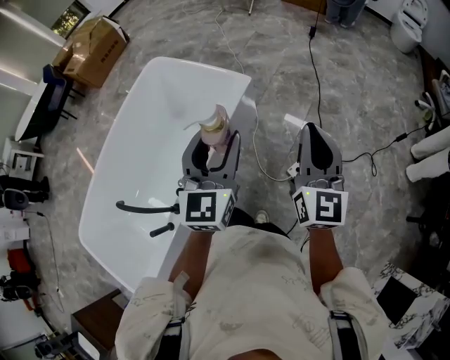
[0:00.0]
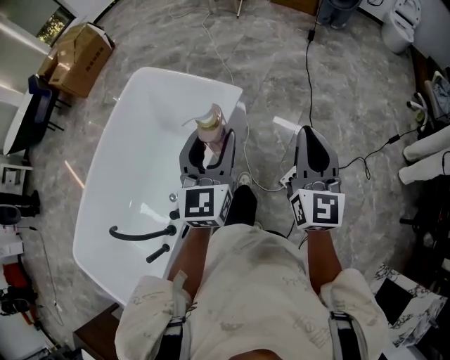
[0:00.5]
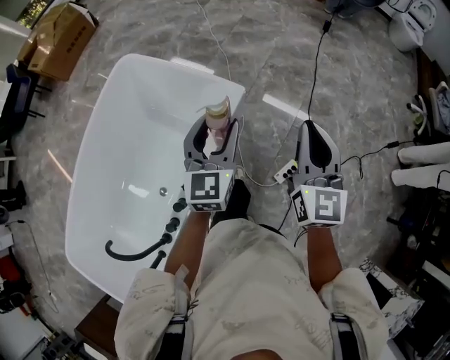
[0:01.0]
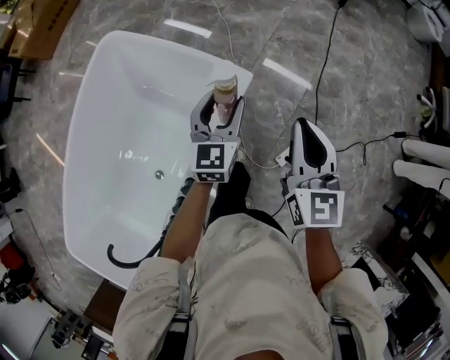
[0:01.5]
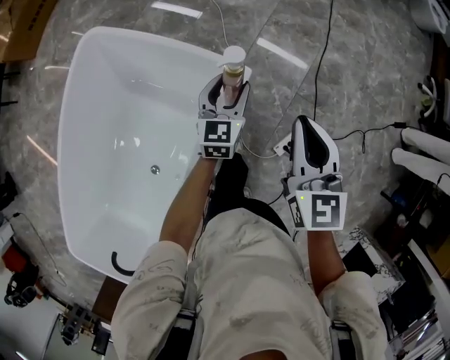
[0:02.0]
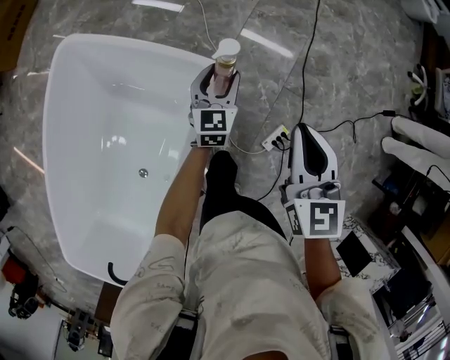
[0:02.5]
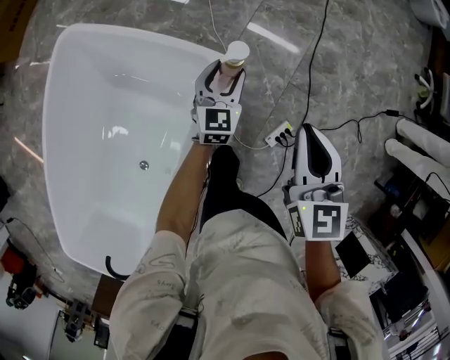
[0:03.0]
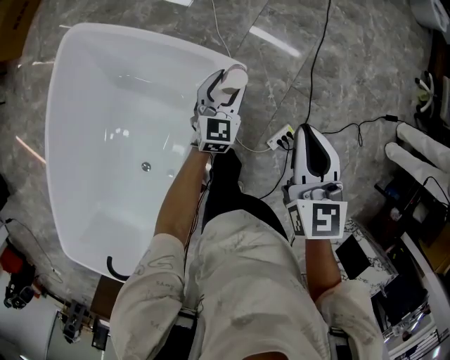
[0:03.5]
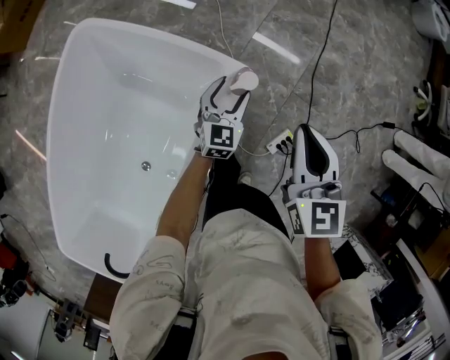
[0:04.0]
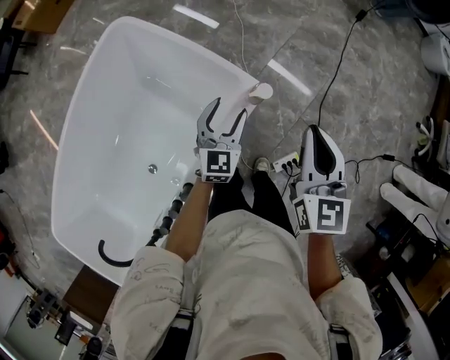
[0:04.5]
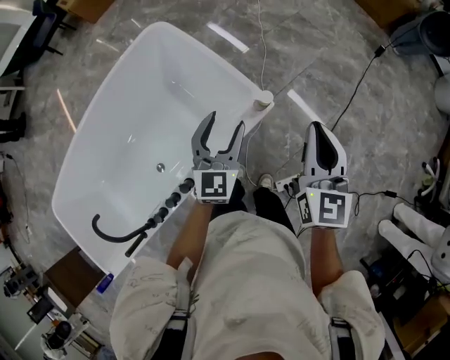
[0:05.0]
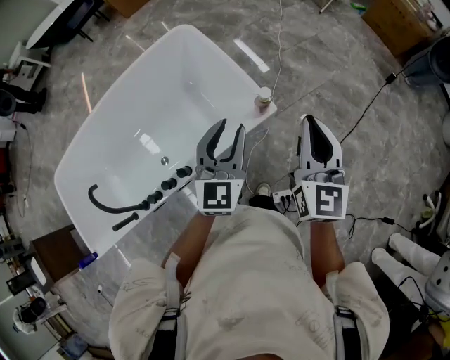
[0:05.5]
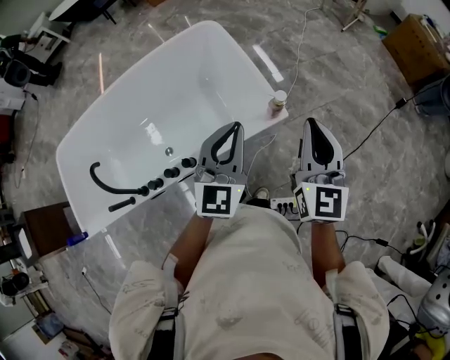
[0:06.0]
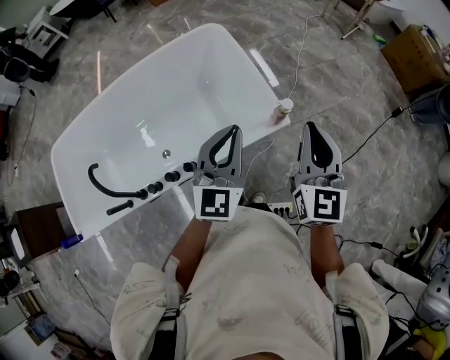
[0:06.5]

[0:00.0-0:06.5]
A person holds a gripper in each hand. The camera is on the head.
0:00.0 to 0:02.0: Both grippers move forward and downward, approximately 50 cm. The left gripper changes its angle by some 20 degrees. The right gripper swivels approximately 30 degrees.
0:02.0 to 0:04.5: The left gripper is displaced backward by roughly 5 cm, and travels downward and back again, approximately 5 cm each way.
0:04.5 to 0:06.5: The right gripper goes approximately 10 cm upward, and swivels approximately 30 degrees; the left gripper heads upward, covering approximately 25 cm, rotates approximately 30 degrees, and closes.

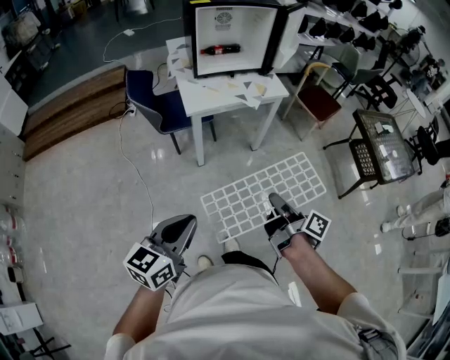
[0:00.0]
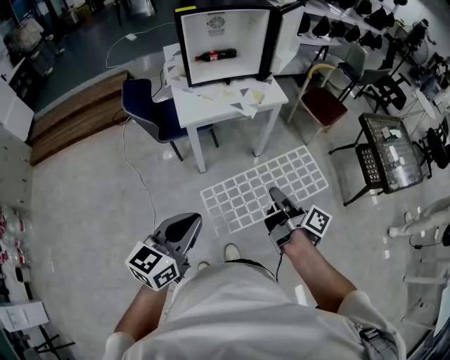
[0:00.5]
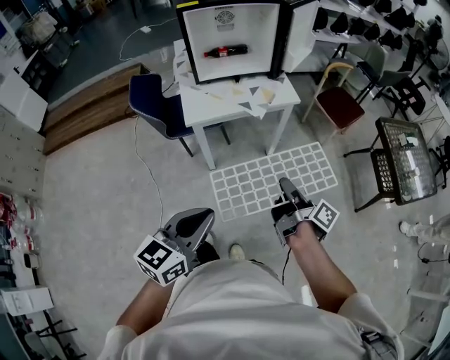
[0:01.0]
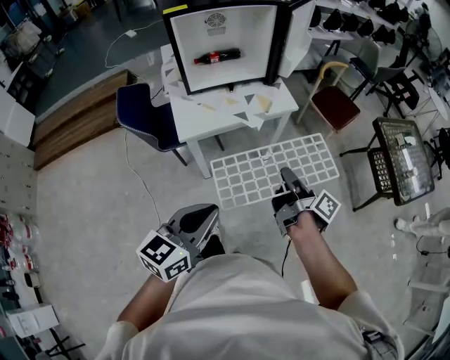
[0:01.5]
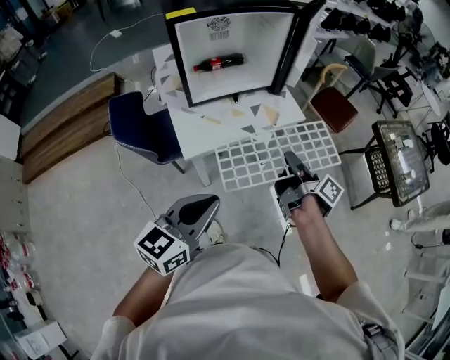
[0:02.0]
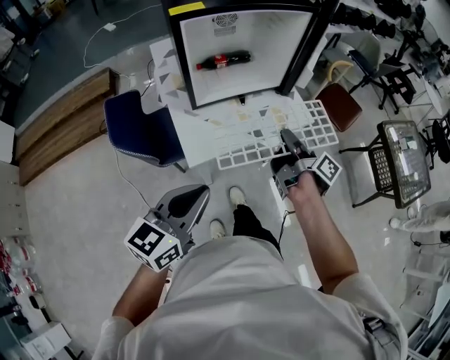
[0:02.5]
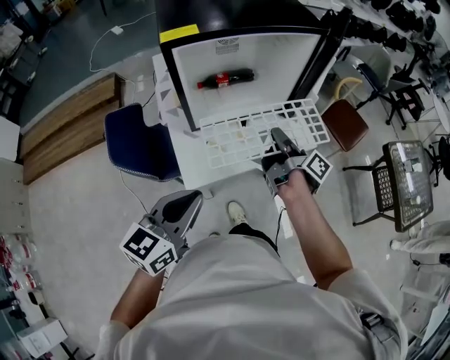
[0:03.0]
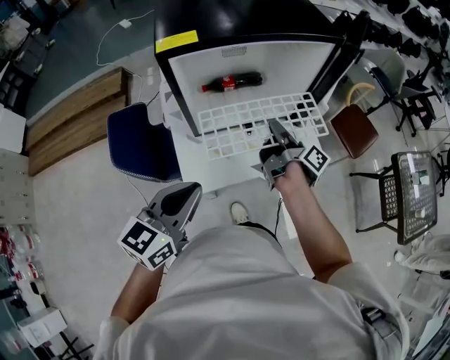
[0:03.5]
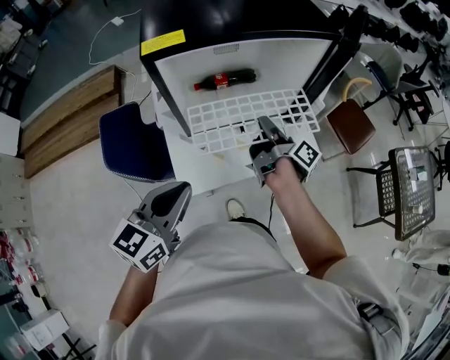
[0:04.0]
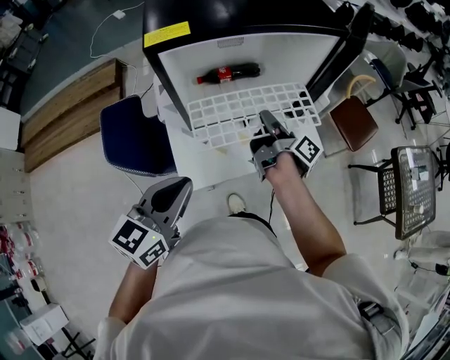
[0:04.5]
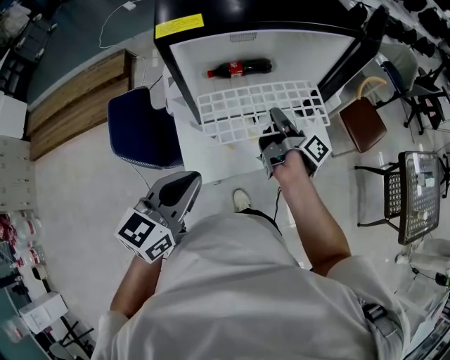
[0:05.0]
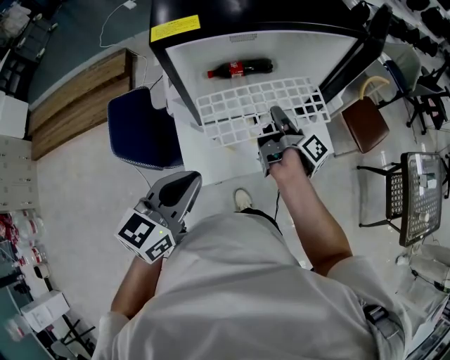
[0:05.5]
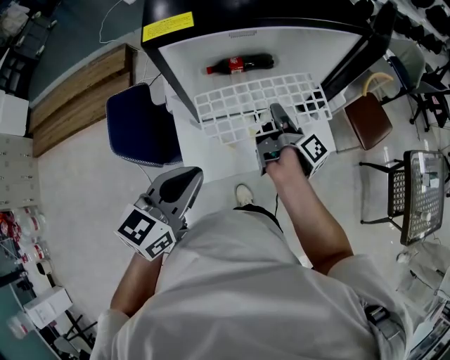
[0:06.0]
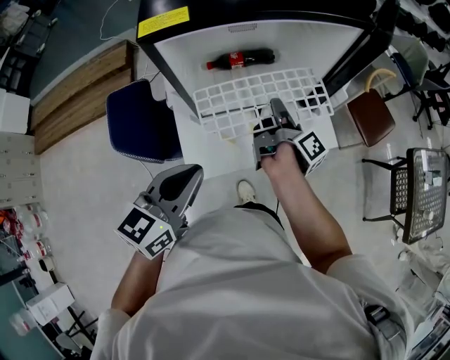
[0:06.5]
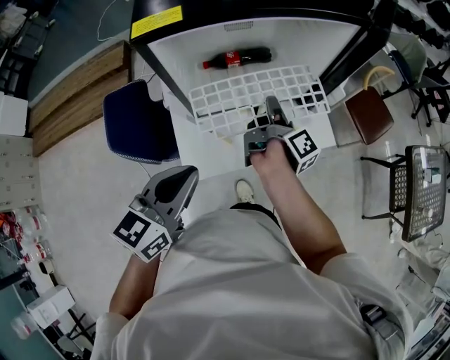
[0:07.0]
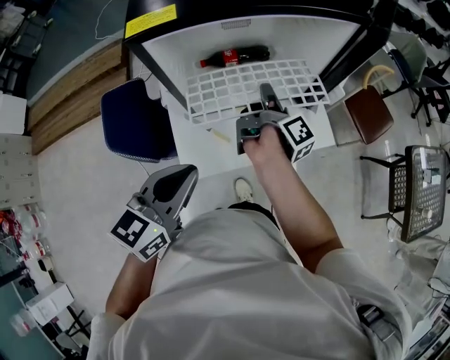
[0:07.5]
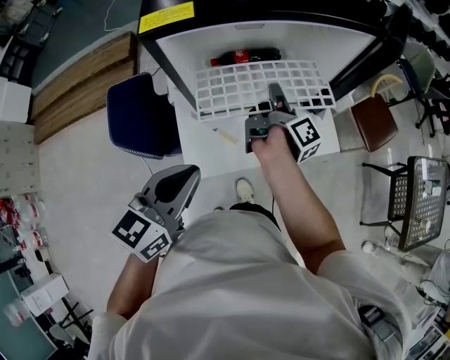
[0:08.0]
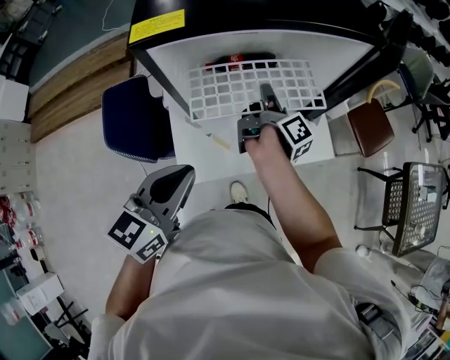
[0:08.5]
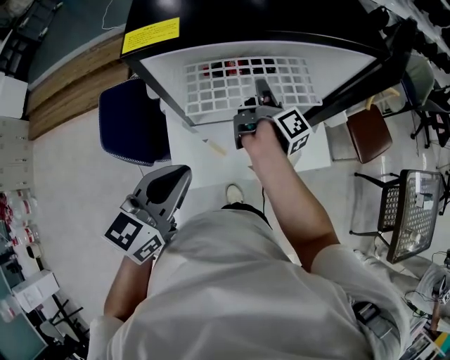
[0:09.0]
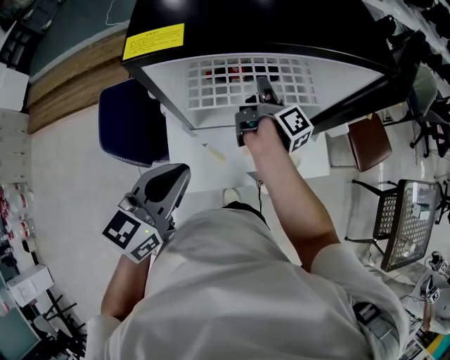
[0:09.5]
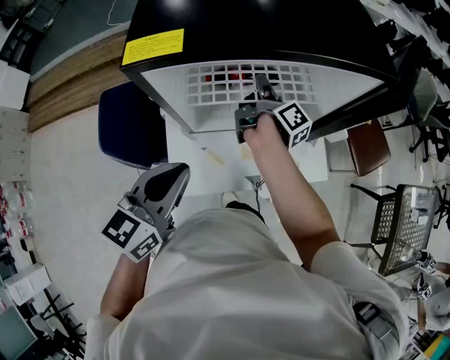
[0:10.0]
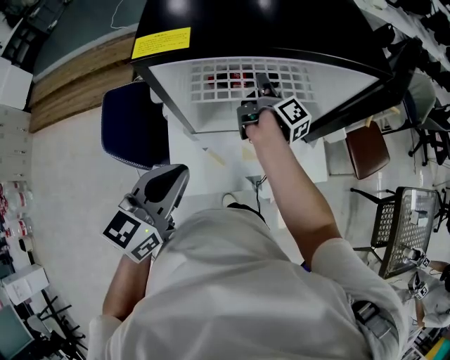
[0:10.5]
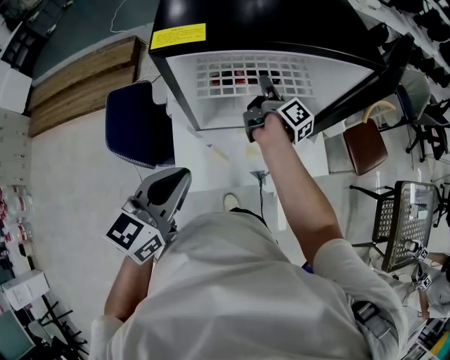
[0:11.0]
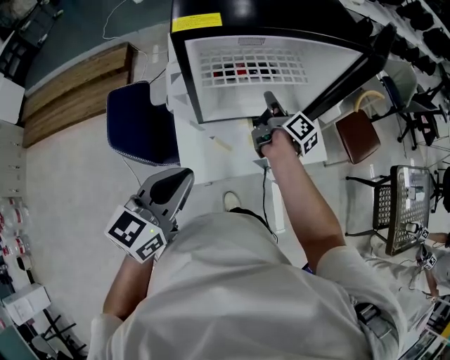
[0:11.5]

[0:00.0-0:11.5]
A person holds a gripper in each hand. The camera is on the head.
0:00.0 to 0:02.0: The left gripper changes place by some 30 cm.
0:02.0 to 0:04.0: The left gripper shifts by some 25 cm.
0:07.5 to 0:09.5: The left gripper moves some 5 cm.
0:09.5 to 0:11.5: The left gripper changes place by roughly 10 cm.

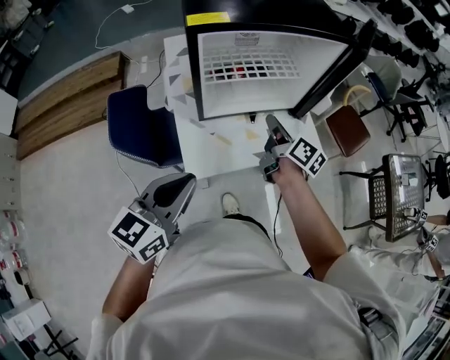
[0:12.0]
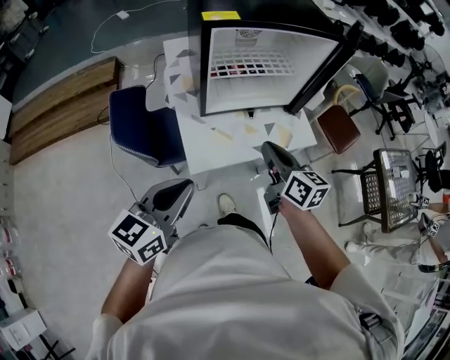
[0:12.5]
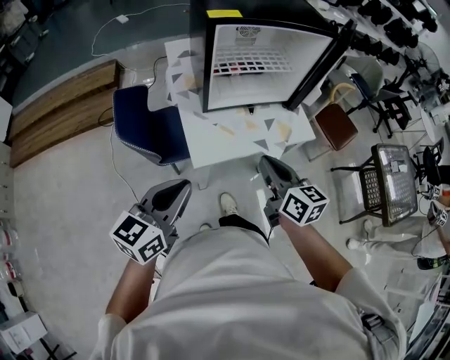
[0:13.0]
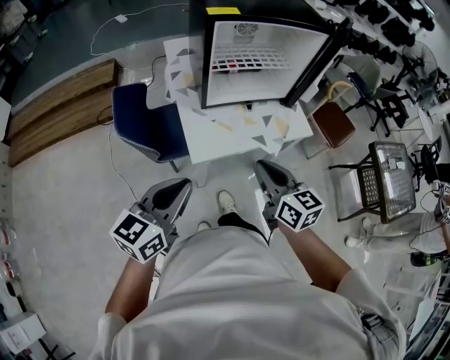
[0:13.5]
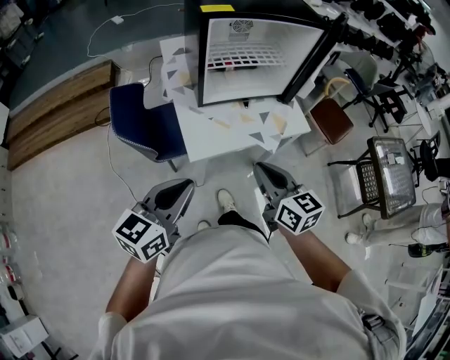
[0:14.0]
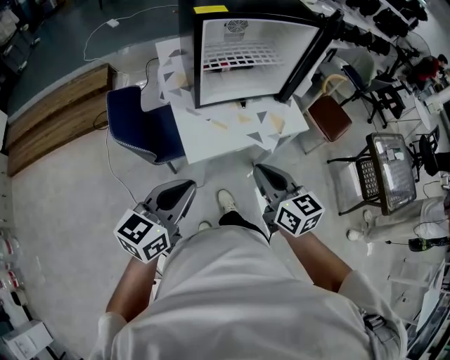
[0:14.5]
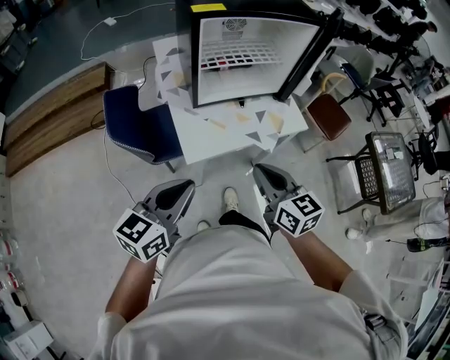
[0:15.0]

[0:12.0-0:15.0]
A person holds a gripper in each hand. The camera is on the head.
0:12.0 to 0:13.5: The left gripper ends up some 10 cm from where it was.

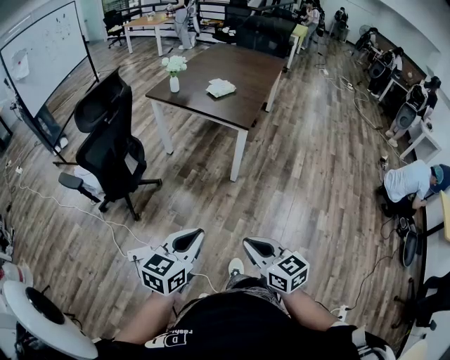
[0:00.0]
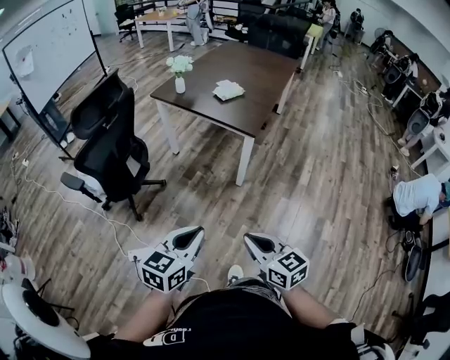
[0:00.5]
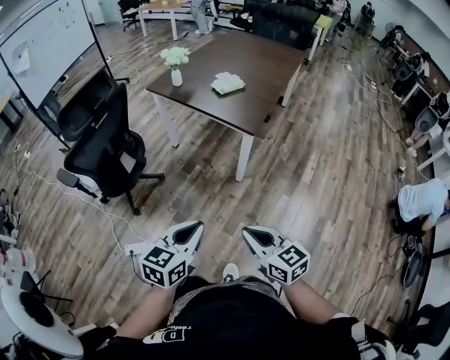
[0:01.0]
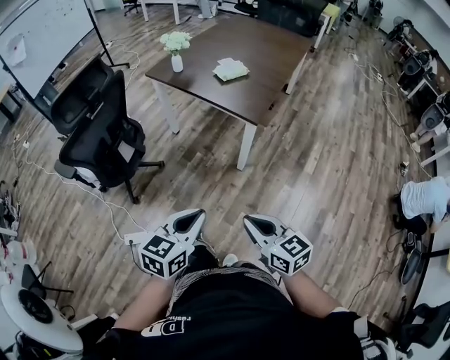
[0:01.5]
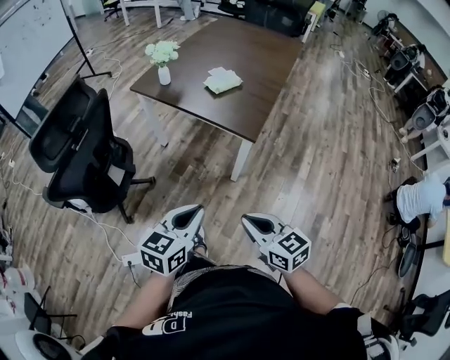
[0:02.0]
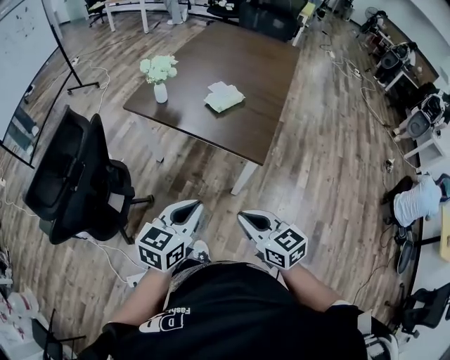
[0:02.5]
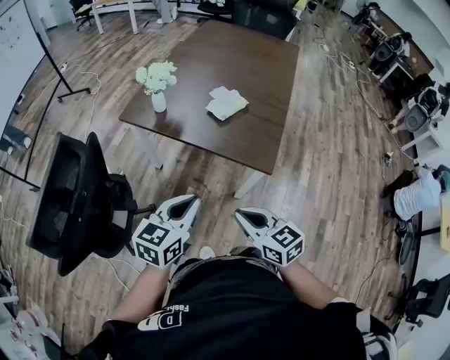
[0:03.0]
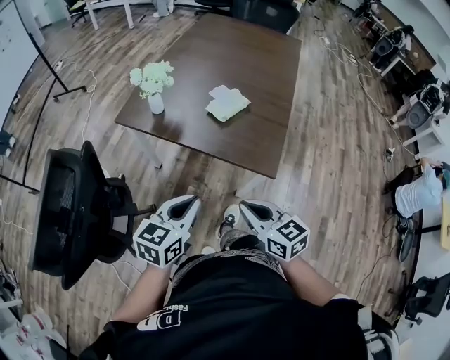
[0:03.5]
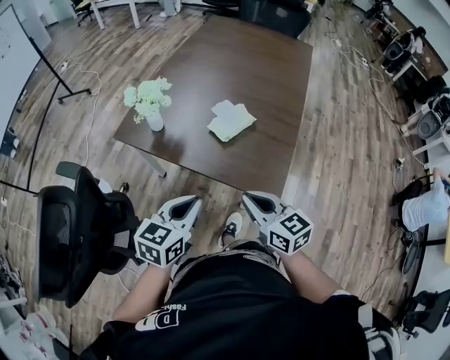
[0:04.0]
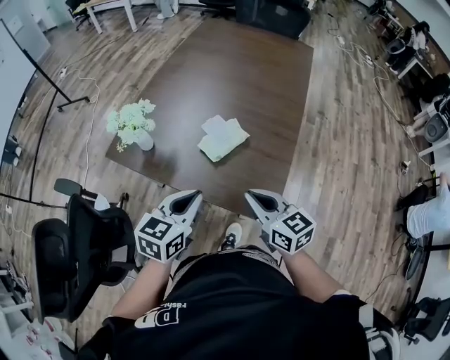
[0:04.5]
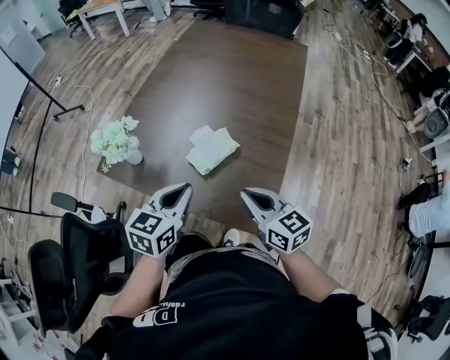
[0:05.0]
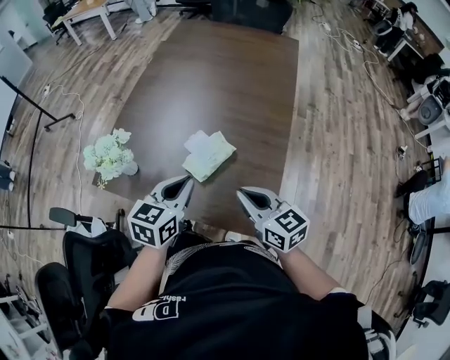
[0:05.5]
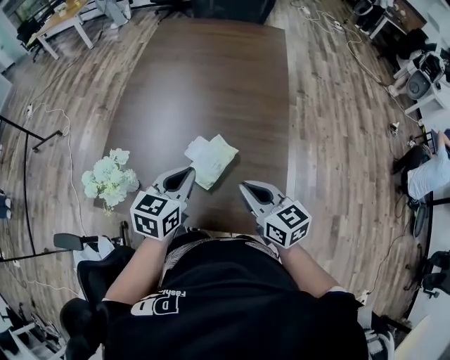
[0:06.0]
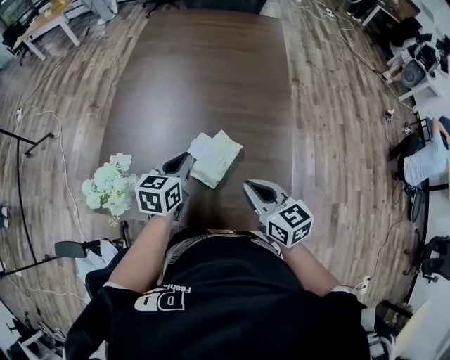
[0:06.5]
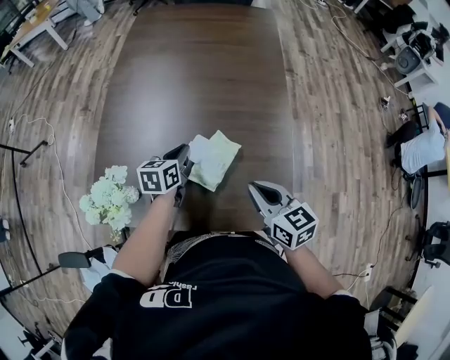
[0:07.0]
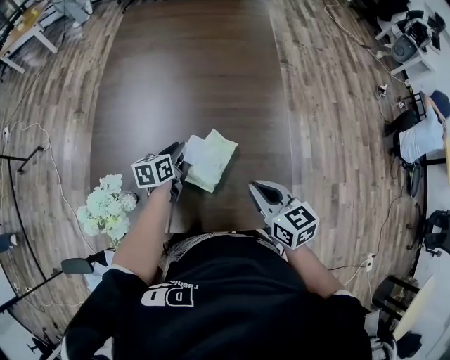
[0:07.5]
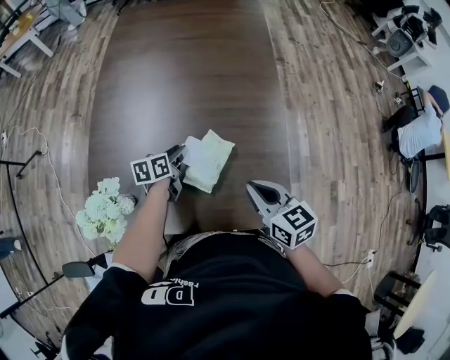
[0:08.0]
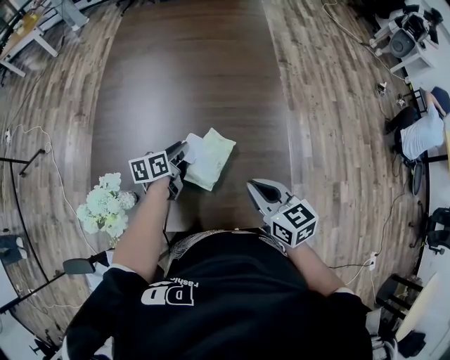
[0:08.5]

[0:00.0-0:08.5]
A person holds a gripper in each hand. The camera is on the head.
0:00.0 to 0:02.0: The grippers both shift forward by some 30 cm.
0:02.0 to 0:04.0: Both grippers move forward, some 40 cm.
0:04.0 to 0:06.5: The left gripper shifts approximately 35 cm forward, while the right gripper shifts roughly 25 cm forward.
0:06.5 to 0:08.5: The left gripper heads downward and forward, covering some 15 cm, rotates approximately 30 degrees, and opens up.
